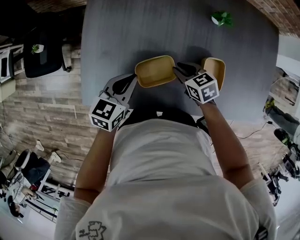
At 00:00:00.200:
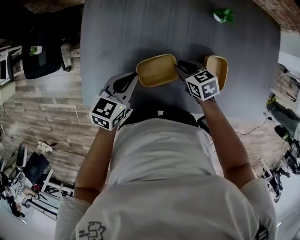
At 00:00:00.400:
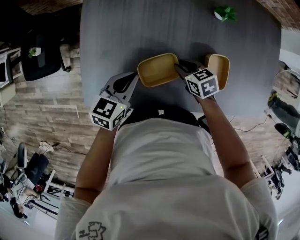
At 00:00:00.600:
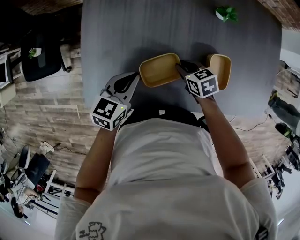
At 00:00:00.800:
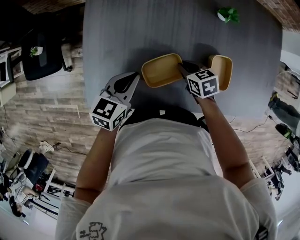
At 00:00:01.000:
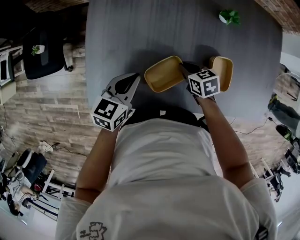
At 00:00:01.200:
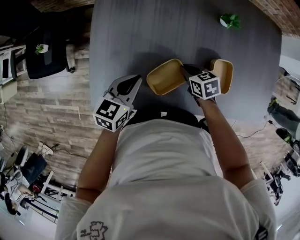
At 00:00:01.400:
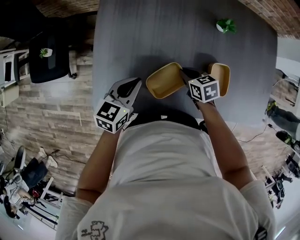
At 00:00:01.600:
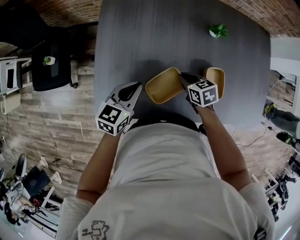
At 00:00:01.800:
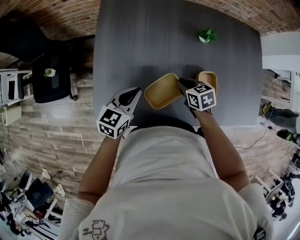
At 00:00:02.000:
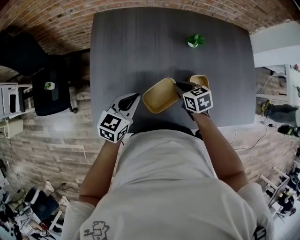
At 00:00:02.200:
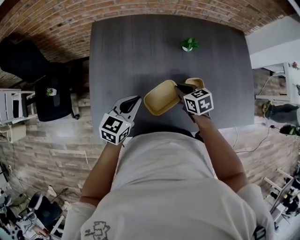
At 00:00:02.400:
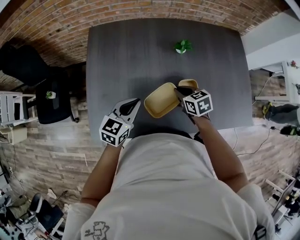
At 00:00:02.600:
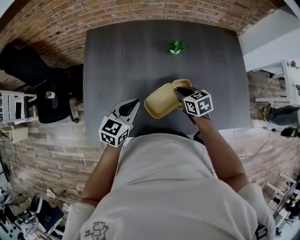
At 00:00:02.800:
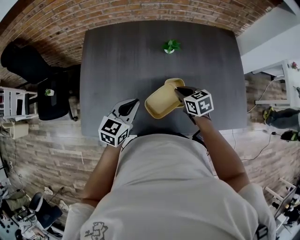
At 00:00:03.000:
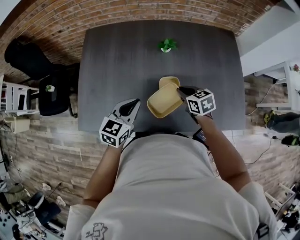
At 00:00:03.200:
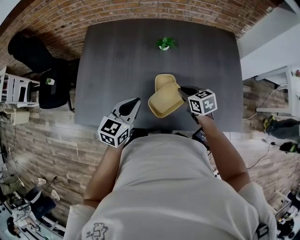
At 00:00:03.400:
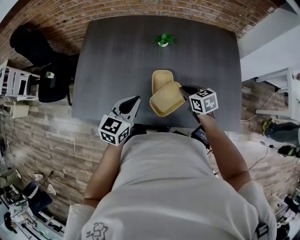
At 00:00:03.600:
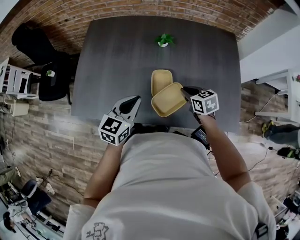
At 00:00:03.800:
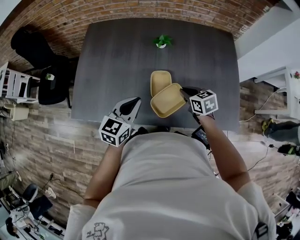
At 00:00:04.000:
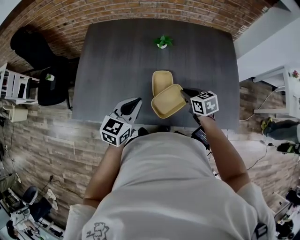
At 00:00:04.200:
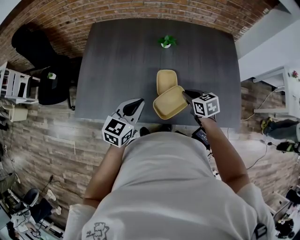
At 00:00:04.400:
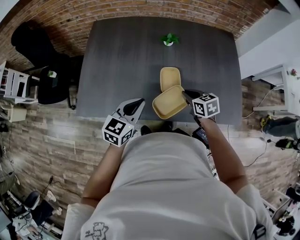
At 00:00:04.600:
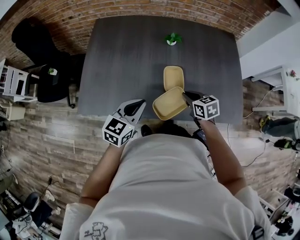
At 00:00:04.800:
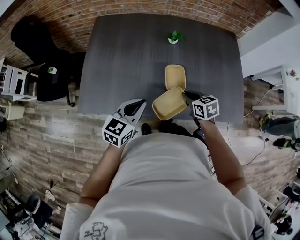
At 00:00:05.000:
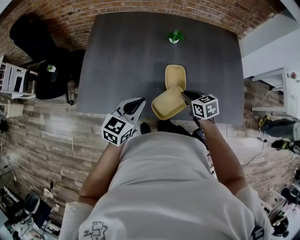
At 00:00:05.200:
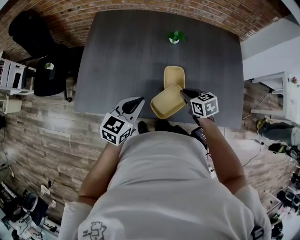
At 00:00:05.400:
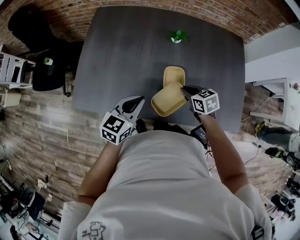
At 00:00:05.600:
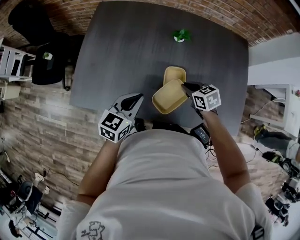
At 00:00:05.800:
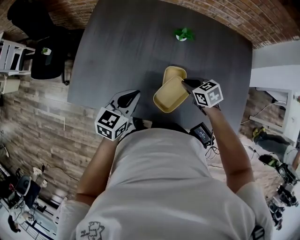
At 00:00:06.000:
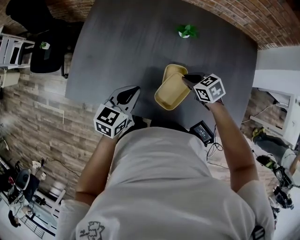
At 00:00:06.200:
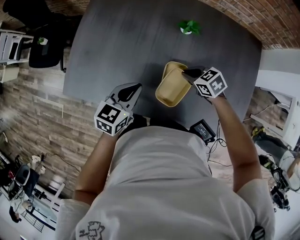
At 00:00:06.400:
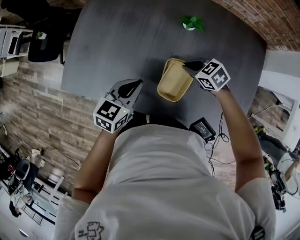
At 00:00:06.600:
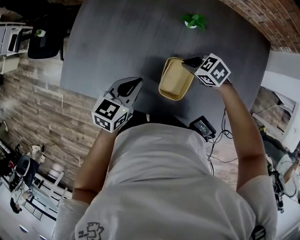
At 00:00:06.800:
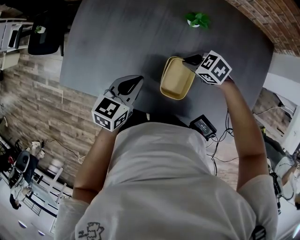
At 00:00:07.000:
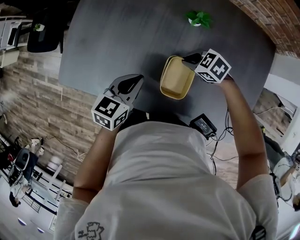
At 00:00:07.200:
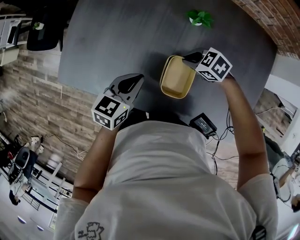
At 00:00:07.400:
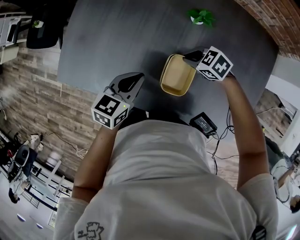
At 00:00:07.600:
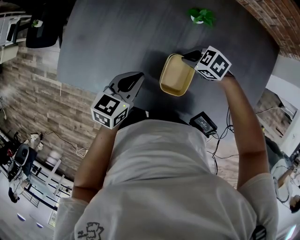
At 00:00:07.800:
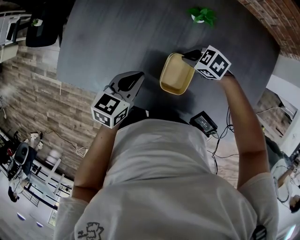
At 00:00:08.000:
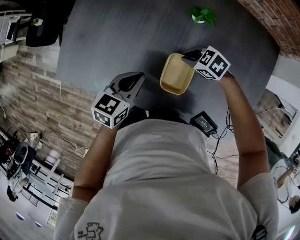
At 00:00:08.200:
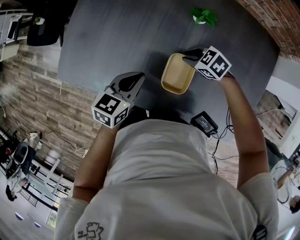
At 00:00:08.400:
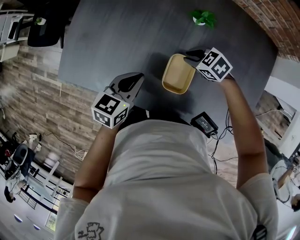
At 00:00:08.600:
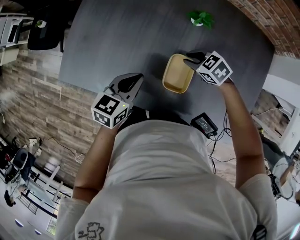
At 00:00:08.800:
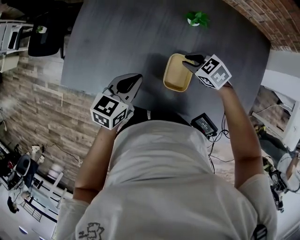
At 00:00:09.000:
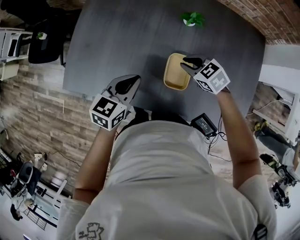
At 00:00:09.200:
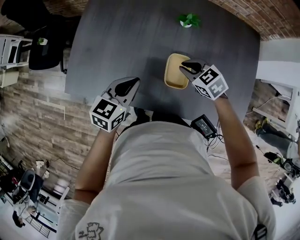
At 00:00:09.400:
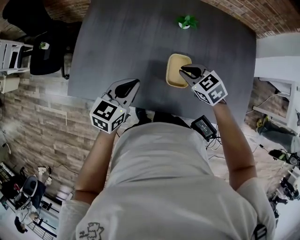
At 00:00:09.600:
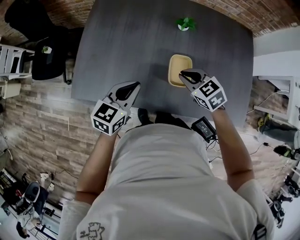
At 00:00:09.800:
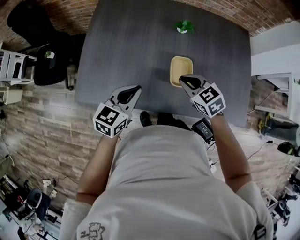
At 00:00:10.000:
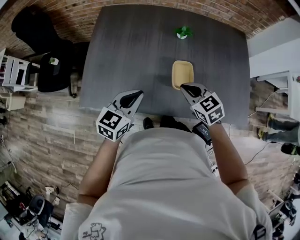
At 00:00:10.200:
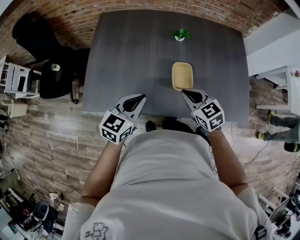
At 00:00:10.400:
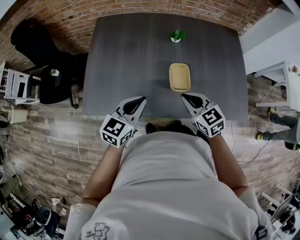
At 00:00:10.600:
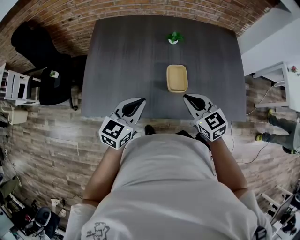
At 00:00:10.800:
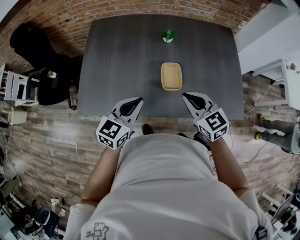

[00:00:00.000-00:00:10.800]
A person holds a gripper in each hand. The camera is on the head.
00:00:00.000 to 00:00:01.600: The grippers make only small movements.
00:00:01.600 to 00:00:03.000: The right gripper goes about 20 cm to the right, while the left gripper is displaced to the right and upward by approximately 25 cm.
00:00:03.000 to 00:00:04.600: Both grippers travel together backward, roughly 10 cm.
00:00:04.600 to 00:00:06.200: Both grippers travel together forward and downward, some 15 cm. The right gripper swivels roughly 40 degrees.
00:00:06.200 to 00:00:07.800: The right gripper moves downward, roughly 5 cm, and turns by roughly 20 degrees.
00:00:07.800 to 00:00:09.200: The right gripper travels upward by approximately 10 cm, and swivels about 30 degrees. The left gripper is displaced upward by about 5 cm.
00:00:09.200 to 00:00:10.800: The right gripper shifts some 20 cm backward and upward, and swivels roughly 30 degrees, while the left gripper goes some 10 cm backward and upward.

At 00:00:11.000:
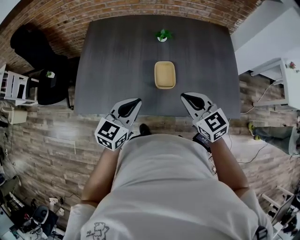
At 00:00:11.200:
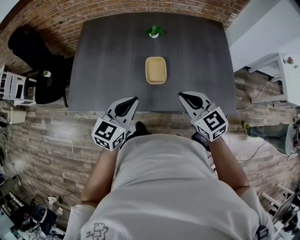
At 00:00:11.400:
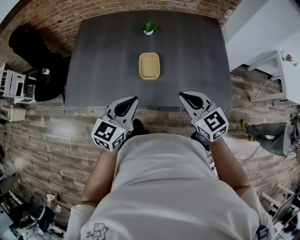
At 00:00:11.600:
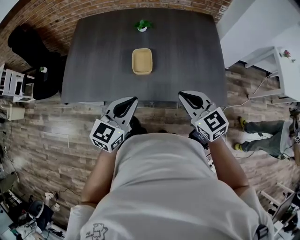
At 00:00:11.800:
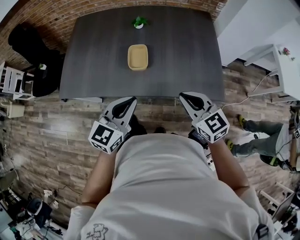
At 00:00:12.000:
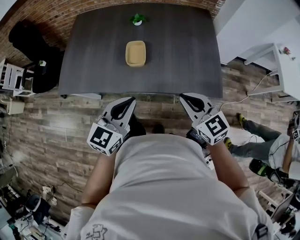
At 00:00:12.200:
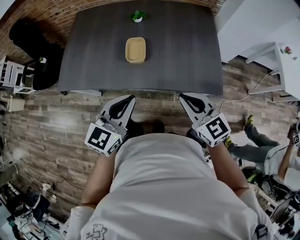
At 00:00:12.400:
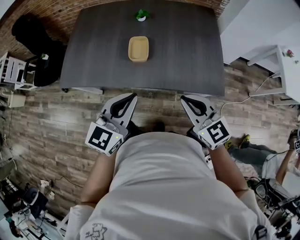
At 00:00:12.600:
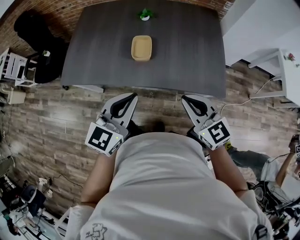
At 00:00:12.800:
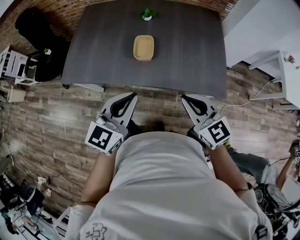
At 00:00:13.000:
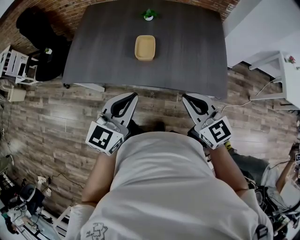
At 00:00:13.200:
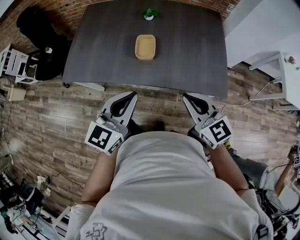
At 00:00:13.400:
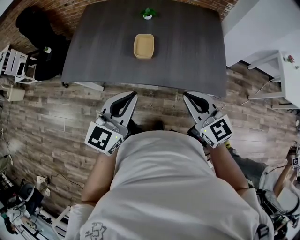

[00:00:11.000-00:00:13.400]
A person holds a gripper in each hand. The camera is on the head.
00:00:11.000 to 00:00:12.200: The left gripper goes some 20 cm to the right and backward; the right gripper travels backward and to the right by roughly 20 cm.
00:00:12.200 to 00:00:13.400: The grippers make only small movements.

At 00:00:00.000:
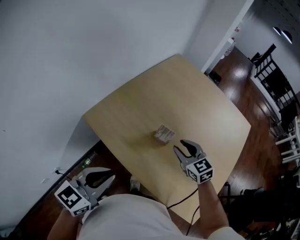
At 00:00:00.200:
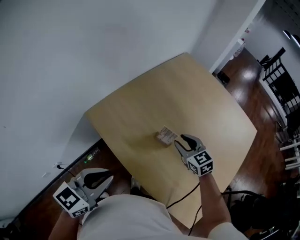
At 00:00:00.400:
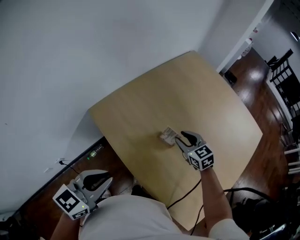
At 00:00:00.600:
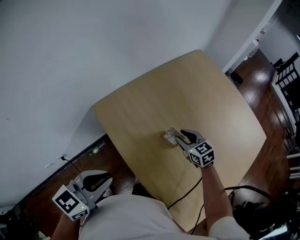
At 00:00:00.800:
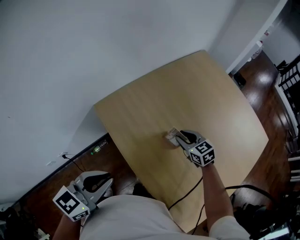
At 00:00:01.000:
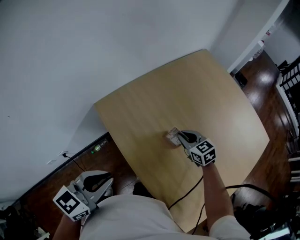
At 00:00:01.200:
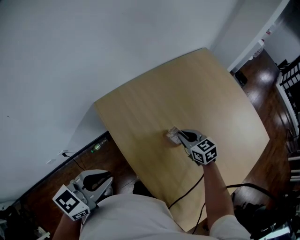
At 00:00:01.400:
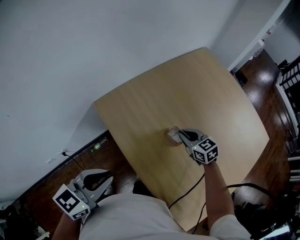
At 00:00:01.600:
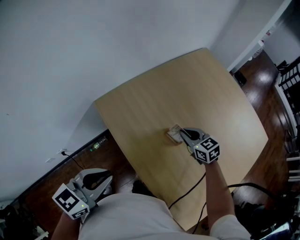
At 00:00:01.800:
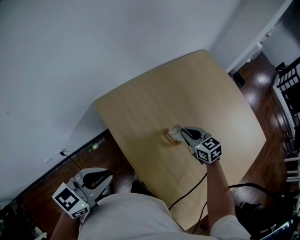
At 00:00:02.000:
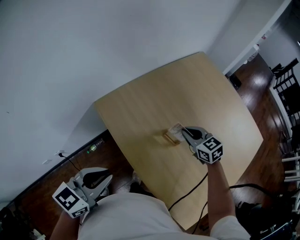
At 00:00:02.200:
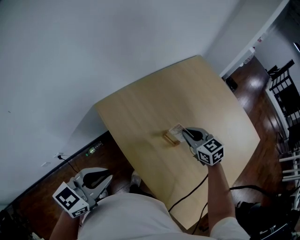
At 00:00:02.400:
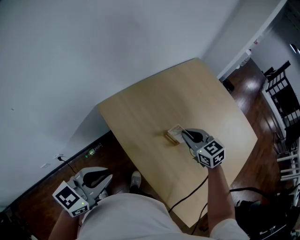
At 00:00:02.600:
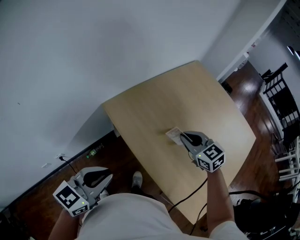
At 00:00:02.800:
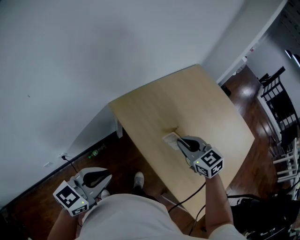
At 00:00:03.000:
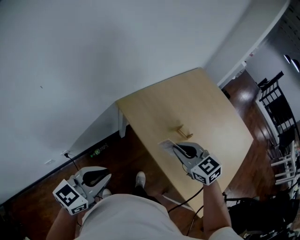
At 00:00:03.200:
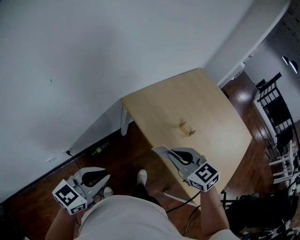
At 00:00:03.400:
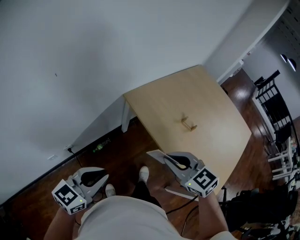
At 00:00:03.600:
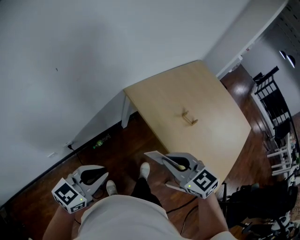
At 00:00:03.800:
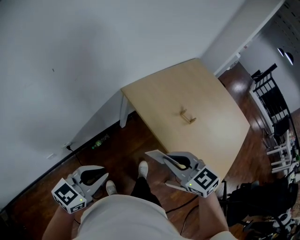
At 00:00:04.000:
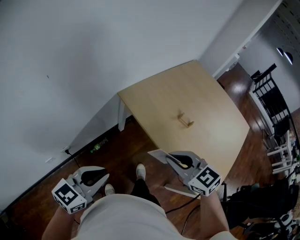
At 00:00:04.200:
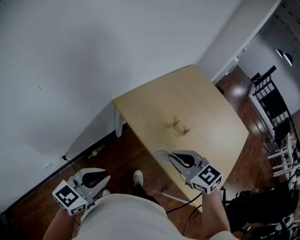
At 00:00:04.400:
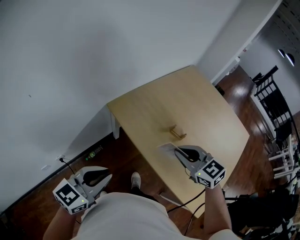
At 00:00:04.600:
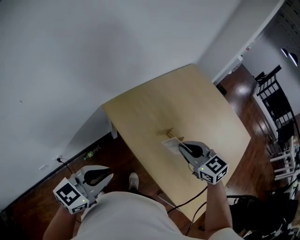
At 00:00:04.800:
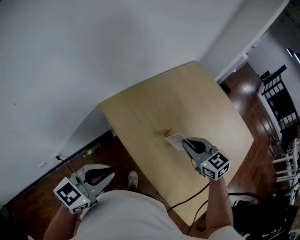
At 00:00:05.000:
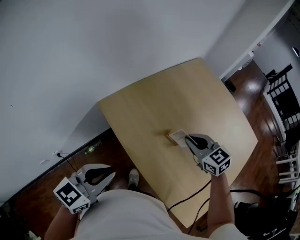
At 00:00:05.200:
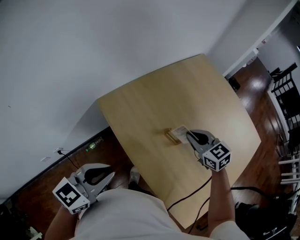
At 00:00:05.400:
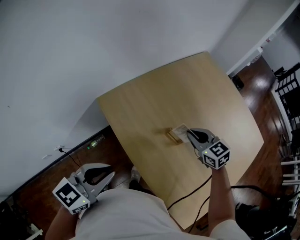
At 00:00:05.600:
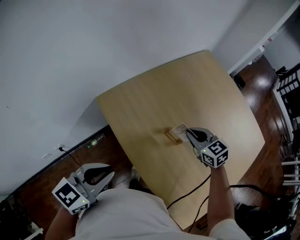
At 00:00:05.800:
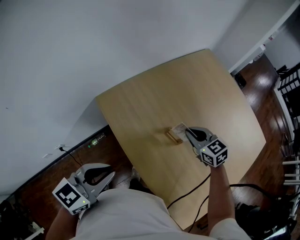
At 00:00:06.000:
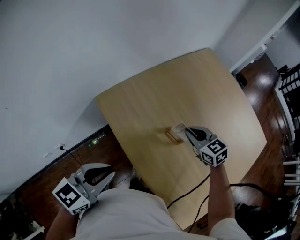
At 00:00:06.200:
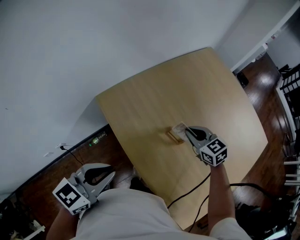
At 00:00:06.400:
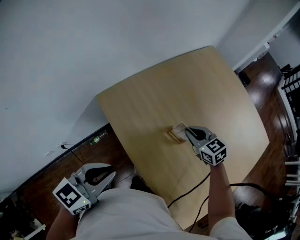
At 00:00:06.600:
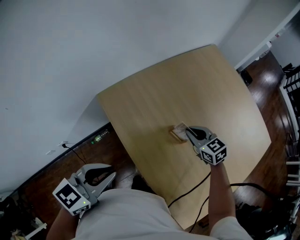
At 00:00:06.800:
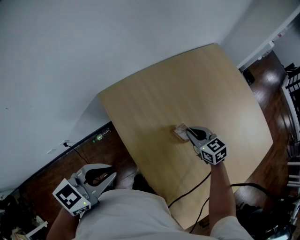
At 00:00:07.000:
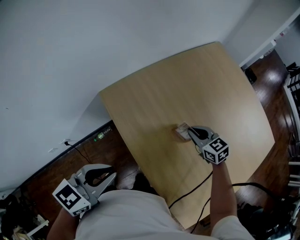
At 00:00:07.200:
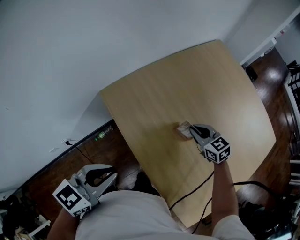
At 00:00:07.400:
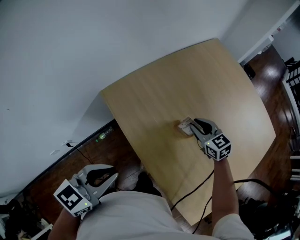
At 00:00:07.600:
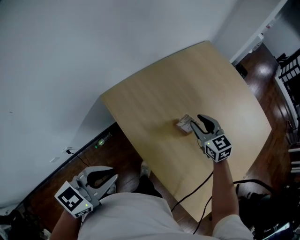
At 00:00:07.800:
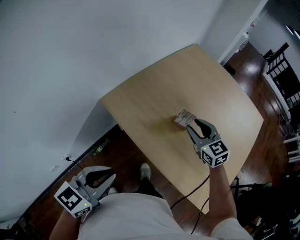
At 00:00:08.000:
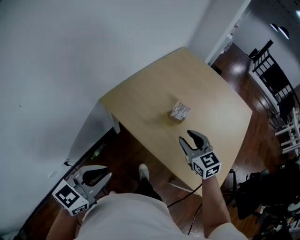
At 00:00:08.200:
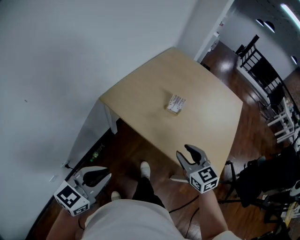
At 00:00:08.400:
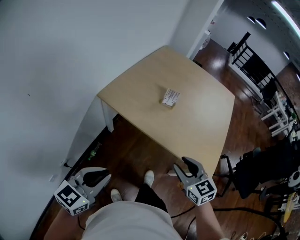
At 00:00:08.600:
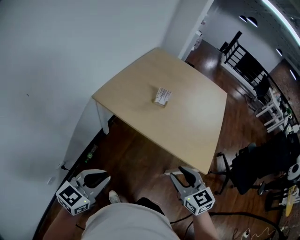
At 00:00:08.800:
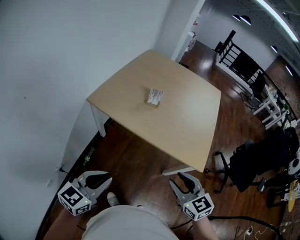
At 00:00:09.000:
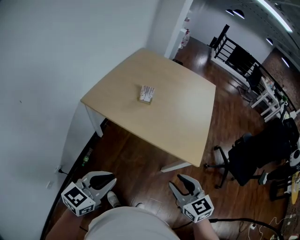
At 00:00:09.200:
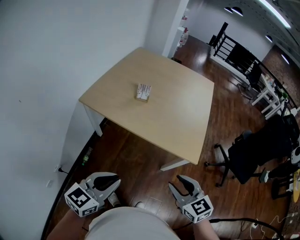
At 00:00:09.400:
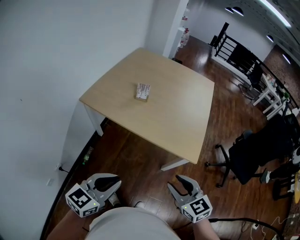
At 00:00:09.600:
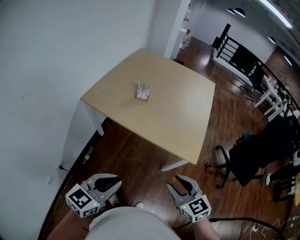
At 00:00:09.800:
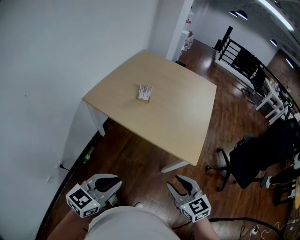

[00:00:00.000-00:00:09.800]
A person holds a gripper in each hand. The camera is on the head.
00:00:00.000 to 00:00:01.400: The right gripper is displaced forward and downward by roughly 10 cm, and closes its fingers.
00:00:01.400 to 00:00:02.800: The left gripper heads to the left and backward, covering some 15 cm. The right gripper shifts about 25 cm upward, to the left and backward.
00:00:02.800 to 00:00:04.200: The left gripper shifts about 5 cm to the left; the right gripper goes some 15 cm backward and to the left.
00:00:04.200 to 00:00:05.600: The left gripper shifts some 20 cm to the right and forward, while the right gripper travels forward, to the right and downward by about 35 cm.
00:00:05.600 to 00:00:07.000: The right gripper goes about 5 cm downward.
00:00:07.000 to 00:00:08.400: The right gripper shifts by some 50 cm, changes its angle by about 40 degrees, and opens up. Meanwhile the left gripper ends up roughly 30 cm from where it was, and turns by approximately 20 degrees.
00:00:08.400 to 00:00:09.800: The left gripper shifts roughly 20 cm to the right. The right gripper goes some 20 cm backward and to the right.
